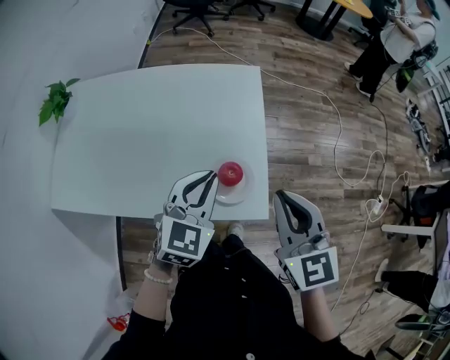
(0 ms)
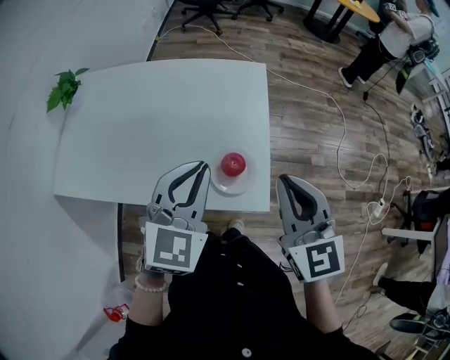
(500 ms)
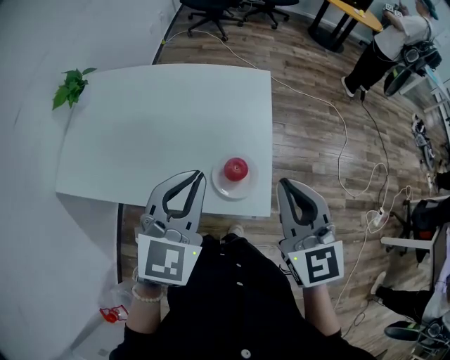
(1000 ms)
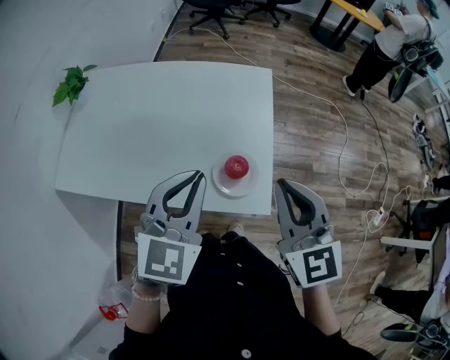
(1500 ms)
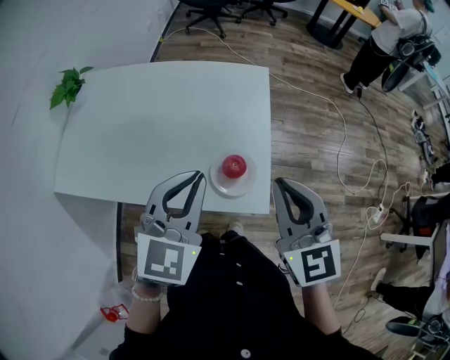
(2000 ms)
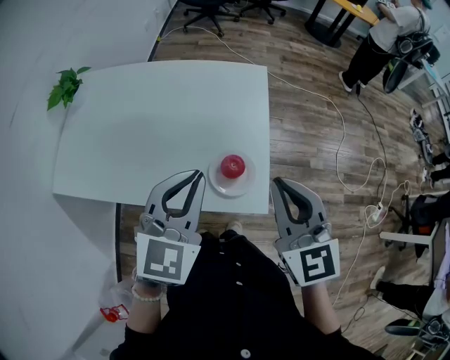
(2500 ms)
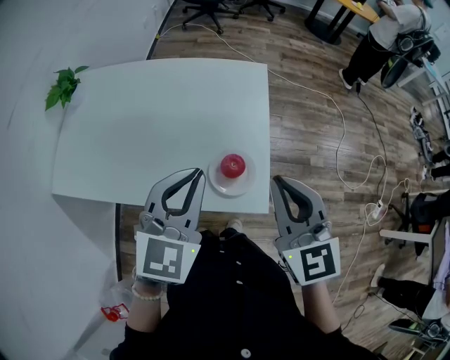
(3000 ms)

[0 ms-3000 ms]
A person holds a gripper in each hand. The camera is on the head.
0 ms to 1500 ms: The left gripper moves upward, approximately 10 cm.
1500 ms to 3000 ms: The grippers make only small movements.

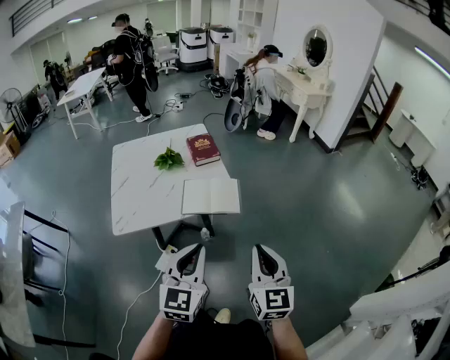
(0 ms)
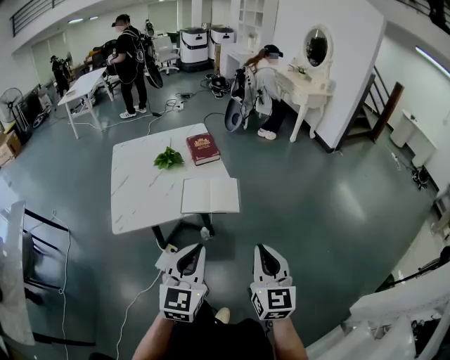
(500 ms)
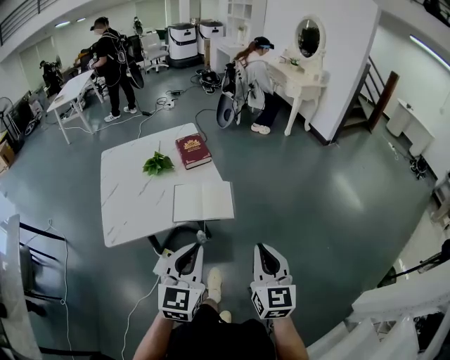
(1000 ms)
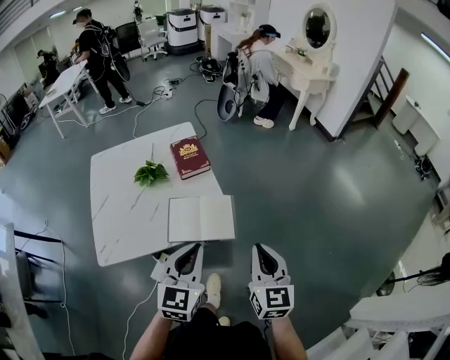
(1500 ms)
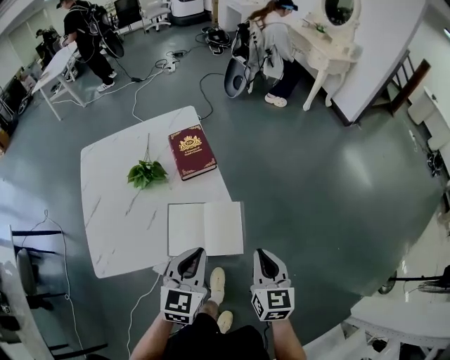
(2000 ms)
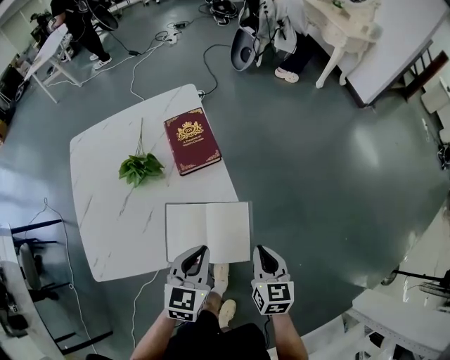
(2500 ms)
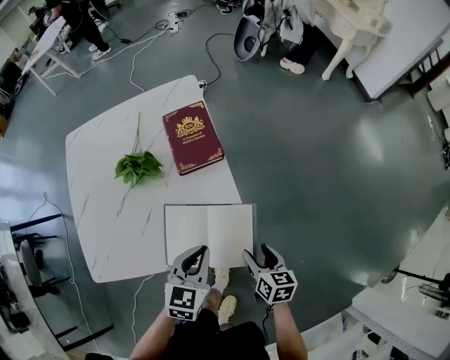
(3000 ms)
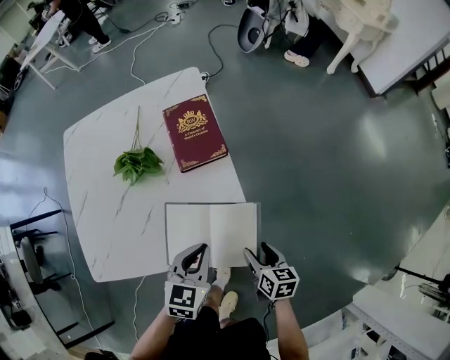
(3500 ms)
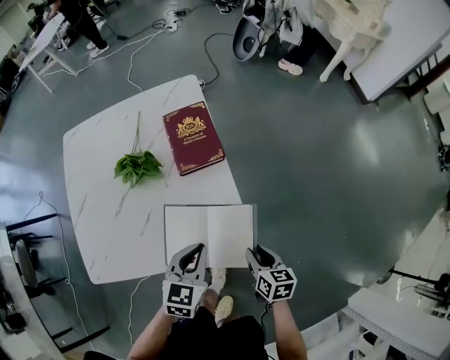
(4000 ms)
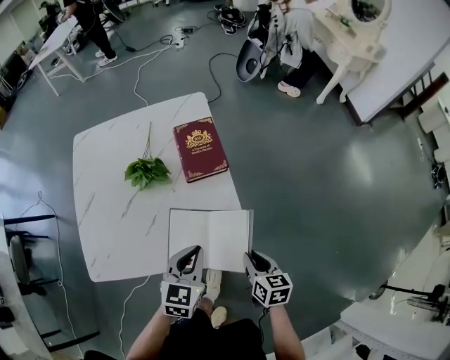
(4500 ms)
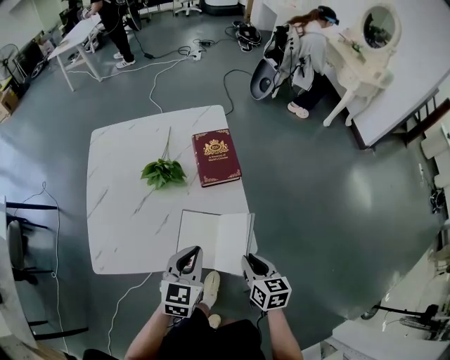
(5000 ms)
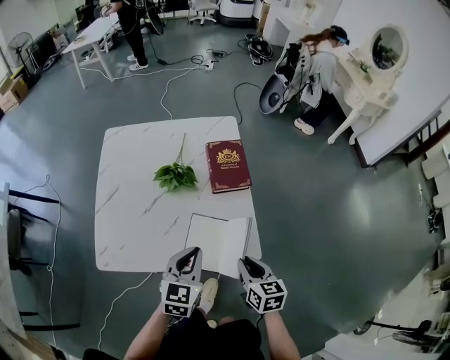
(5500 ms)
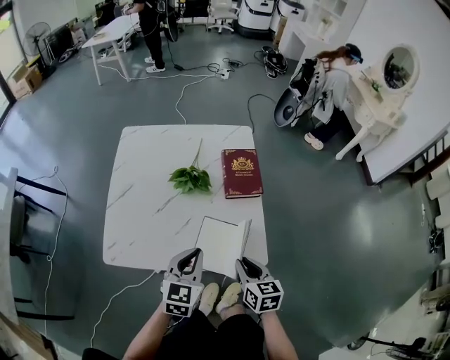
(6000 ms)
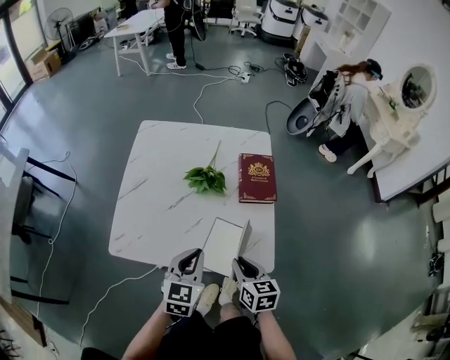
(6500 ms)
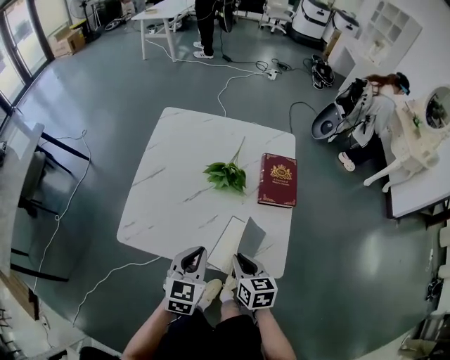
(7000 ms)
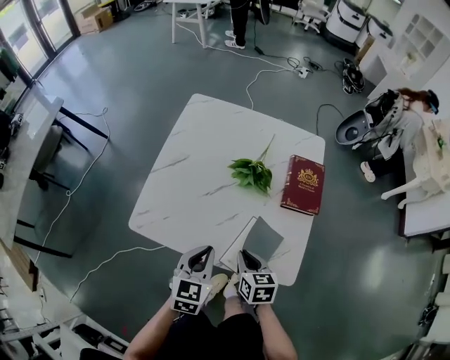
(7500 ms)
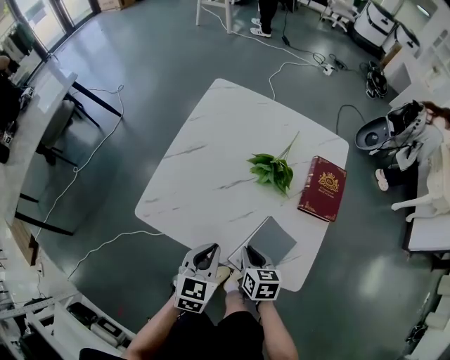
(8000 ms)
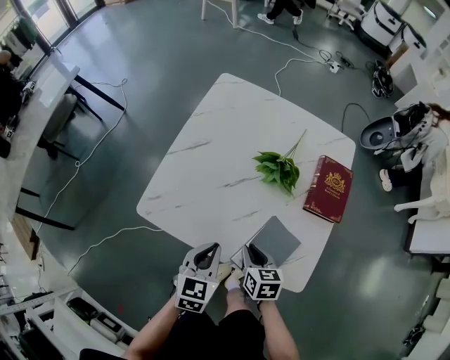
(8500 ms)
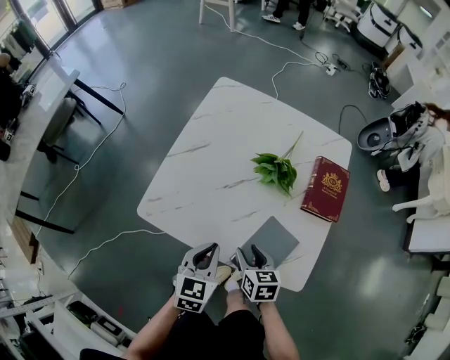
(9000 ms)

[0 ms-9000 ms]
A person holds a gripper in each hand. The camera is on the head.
0 ms to 2000 ms: The grippers both shift forward and downward by approximately 40 cm. The right gripper swivels about 20 degrees.
2000 ms to 4500 ms: The two grippers go some 15 cm downward and forward. The right gripper swivels approximately 30 degrees, and opens, then closes again.
4500 ms to 7000 ms: Both grippers travel together to the left, approximately 20 cm. The left gripper turns by some 30 degrees, while the right gripper swivels roughly 30 degrees.
7000 ms to 9000 ms: The two grippers go some 10 cm downward and to the left. The right gripper opens.

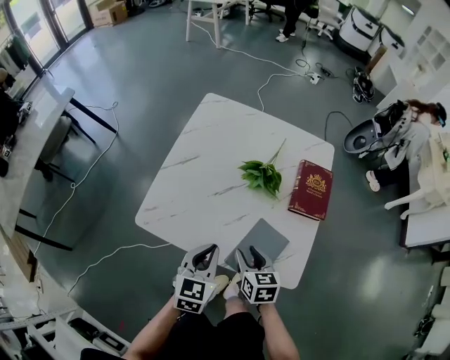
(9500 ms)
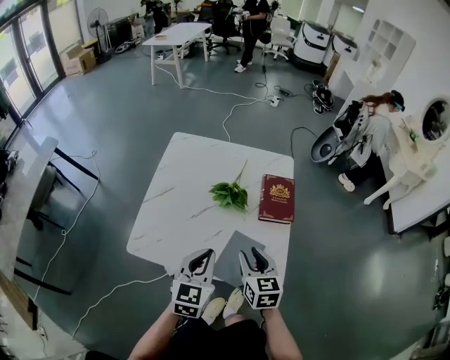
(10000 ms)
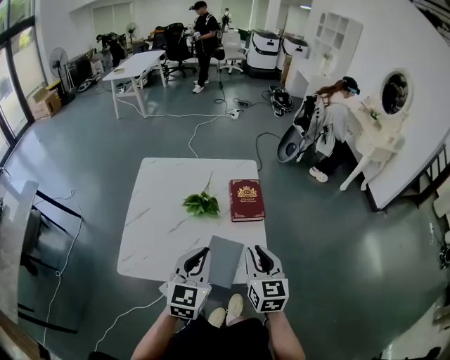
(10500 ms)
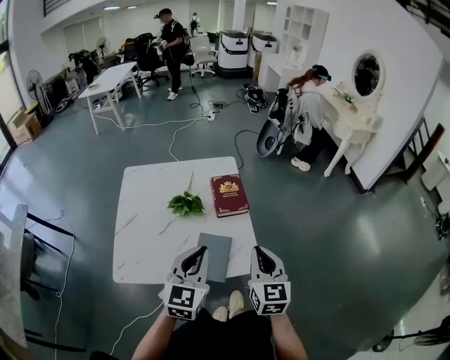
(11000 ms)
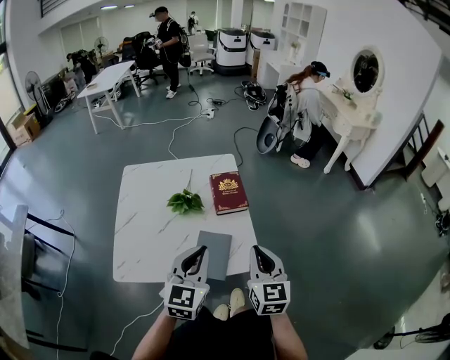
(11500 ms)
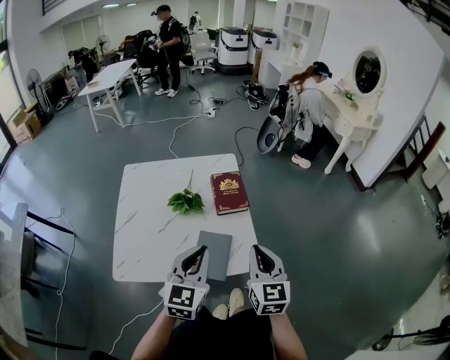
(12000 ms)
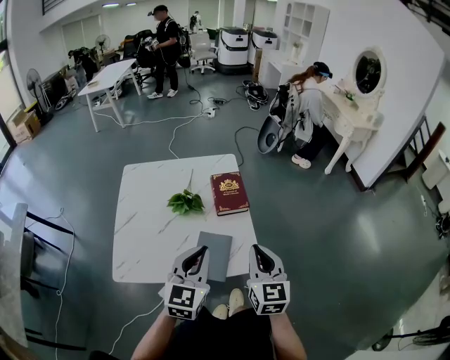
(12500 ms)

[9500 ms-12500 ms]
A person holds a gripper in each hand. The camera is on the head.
9500 ms to 11000 ms: Both grippers travel together upward, approximately 20 cm. The left gripper rotates some 30 degrees; the right gripper rotates roughly 50 degrees, and closes up.
11000 ms to 12500 ms: Both grippers stay put.

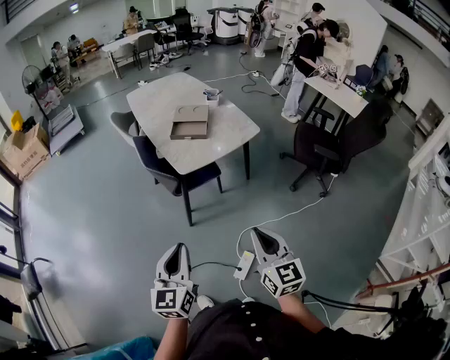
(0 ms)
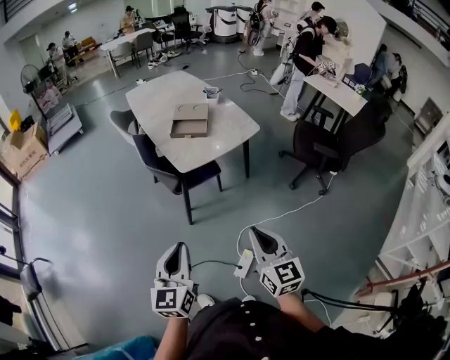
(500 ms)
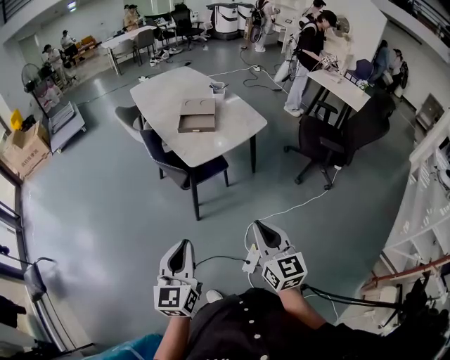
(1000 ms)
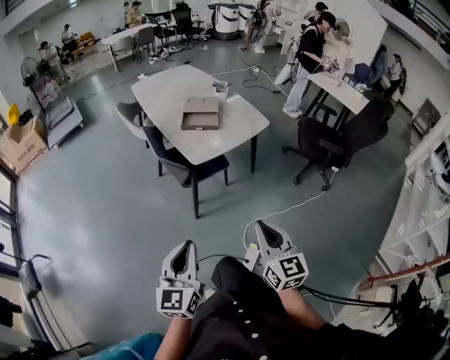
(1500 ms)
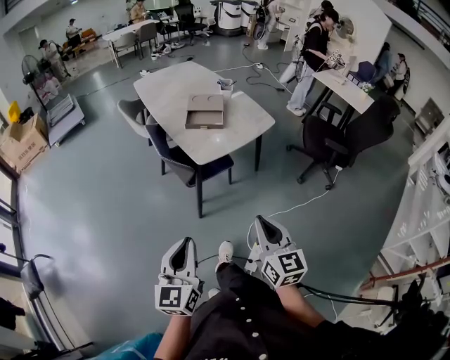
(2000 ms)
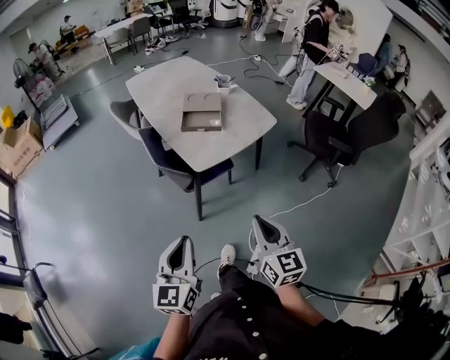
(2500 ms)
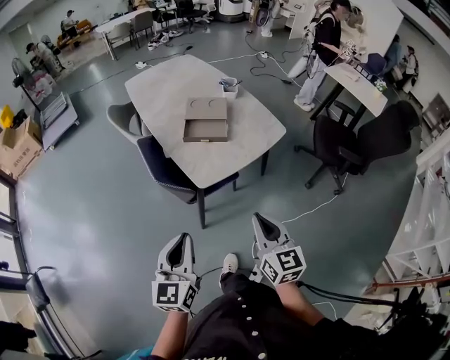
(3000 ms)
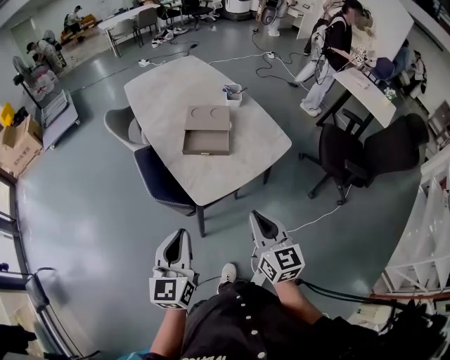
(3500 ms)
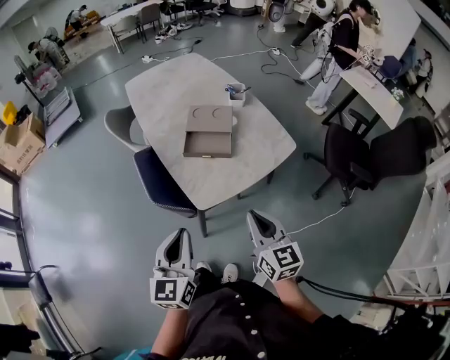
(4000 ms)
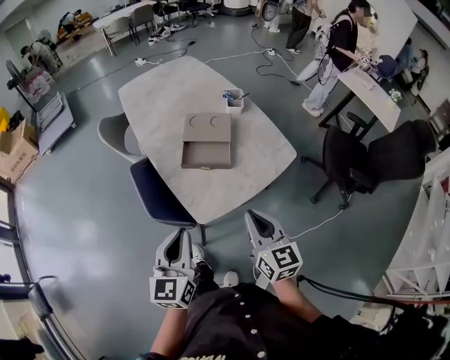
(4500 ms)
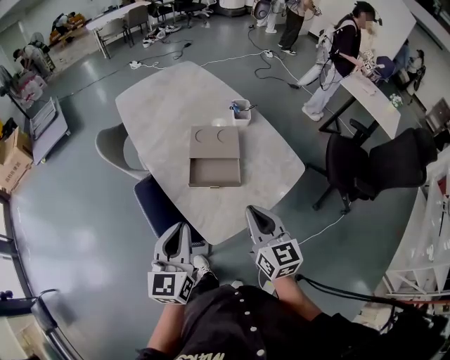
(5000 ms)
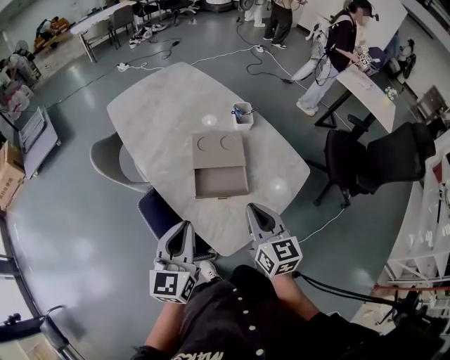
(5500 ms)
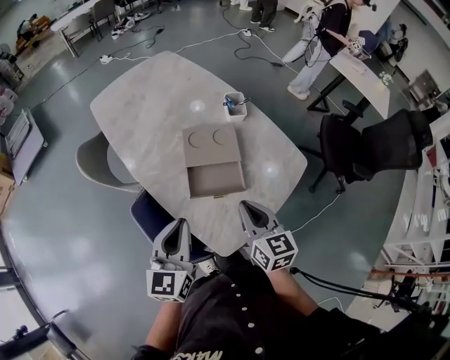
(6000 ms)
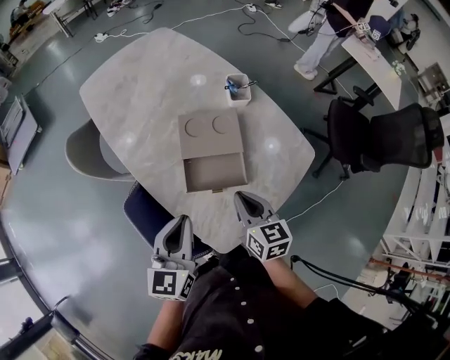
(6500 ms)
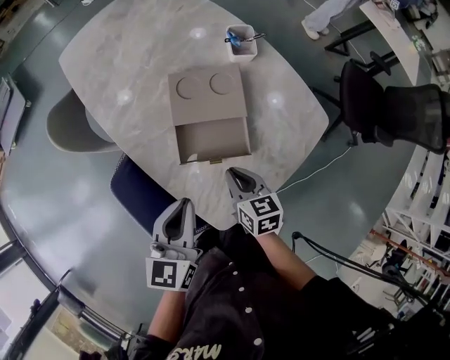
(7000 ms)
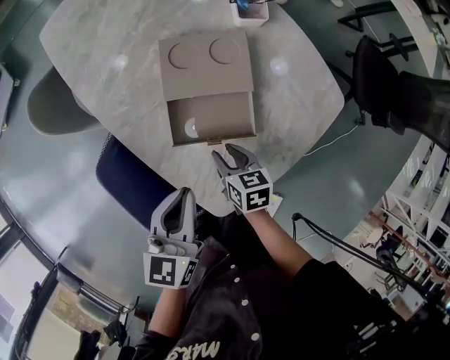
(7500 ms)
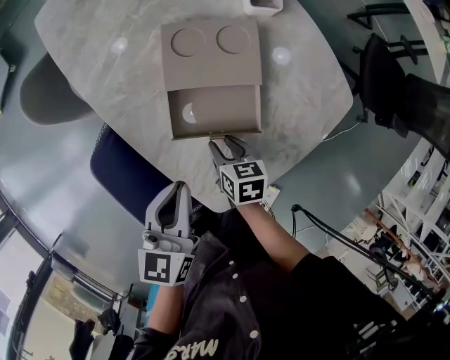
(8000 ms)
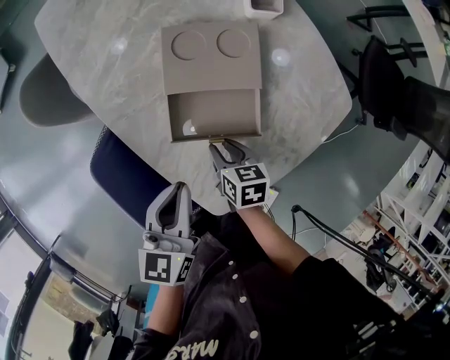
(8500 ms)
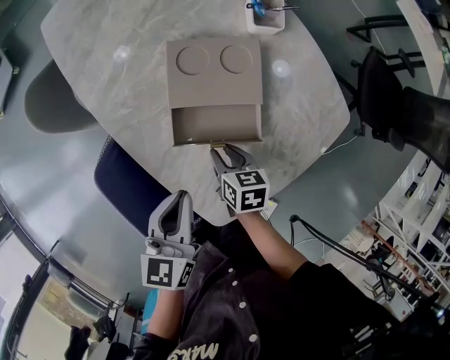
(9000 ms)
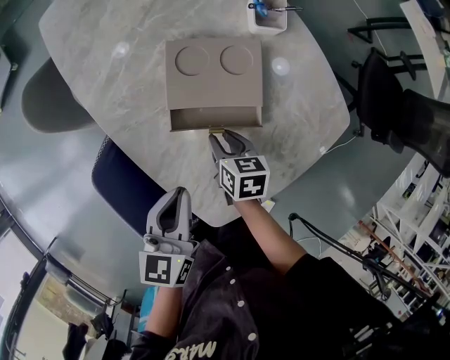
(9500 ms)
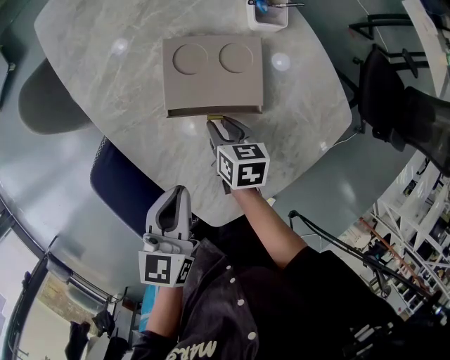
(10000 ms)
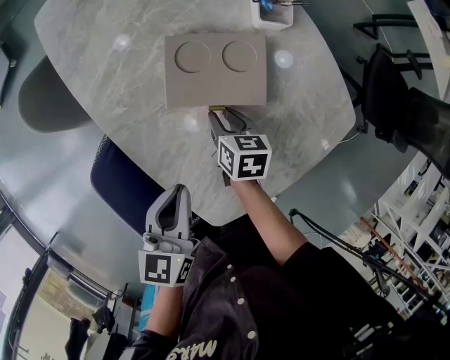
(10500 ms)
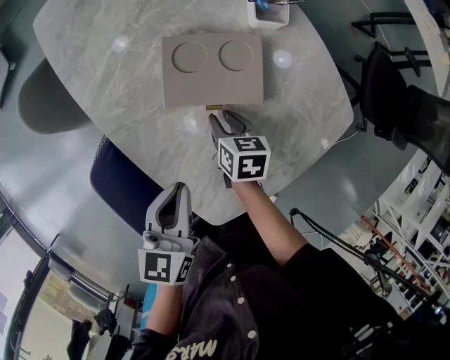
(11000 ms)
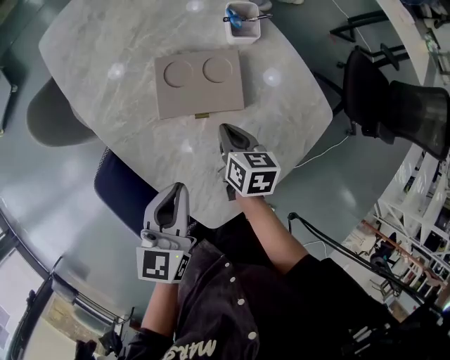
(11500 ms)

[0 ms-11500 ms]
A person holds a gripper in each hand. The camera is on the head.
0 ms to 2000 ms: Both grippers move to the left, about 10 cm.
2000 ms to 4000 ms: The grippers both shift forward by about 35 cm.
4000 ms to 6000 ms: The two grippers go approximately 30 cm forward.
6000 ms to 7500 ms: The left gripper heads downward and to the right, covering approximately 15 cm. The right gripper travels downward by approximately 25 cm, turns by about 30 degrees, and opens its fingers.
7500 ms to 9500 ms: The left gripper changes place by roughly 5 cm, while the right gripper is displaced forward by about 10 cm.
9500 ms to 11500 ms: The right gripper shifts roughly 5 cm upward, and closes.
